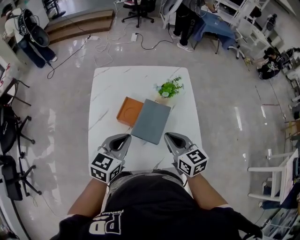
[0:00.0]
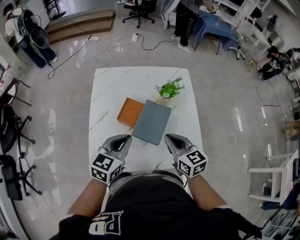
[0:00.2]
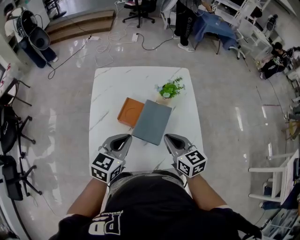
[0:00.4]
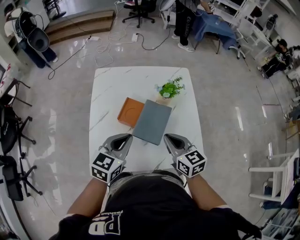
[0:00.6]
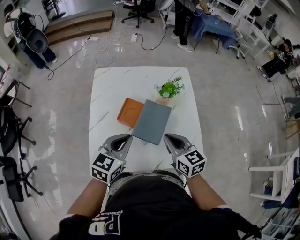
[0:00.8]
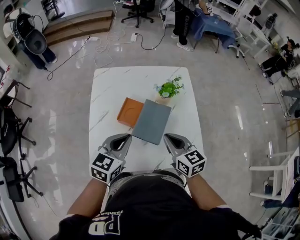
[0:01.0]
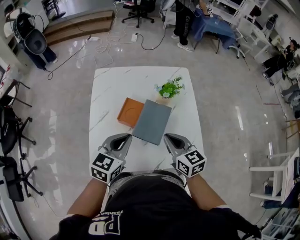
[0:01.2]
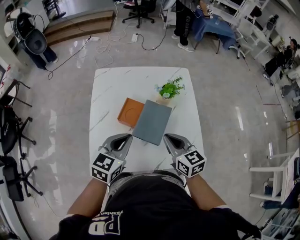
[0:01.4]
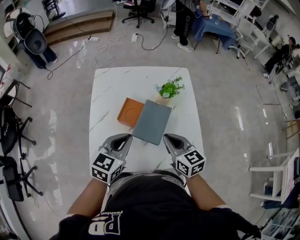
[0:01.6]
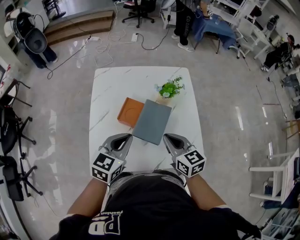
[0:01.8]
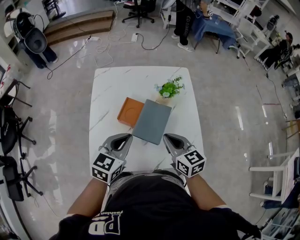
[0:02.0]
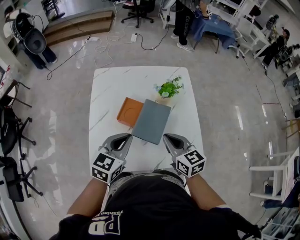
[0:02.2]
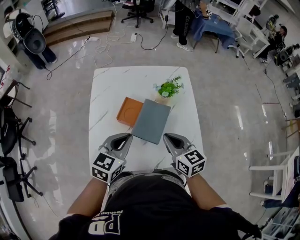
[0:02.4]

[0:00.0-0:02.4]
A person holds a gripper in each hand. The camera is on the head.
0:00.0 to 0:01.2: The two grippers keep their place.
0:01.2 to 0:02.4: Both grippers stay put.

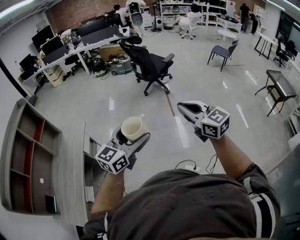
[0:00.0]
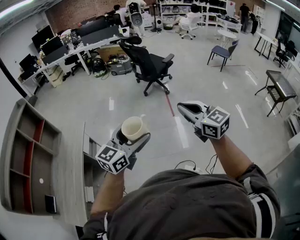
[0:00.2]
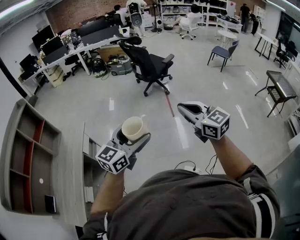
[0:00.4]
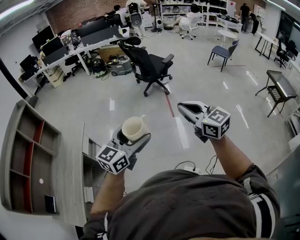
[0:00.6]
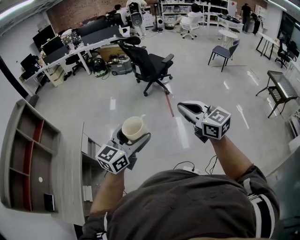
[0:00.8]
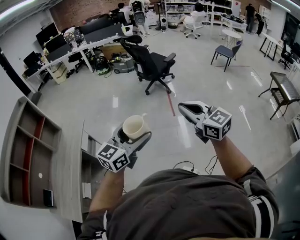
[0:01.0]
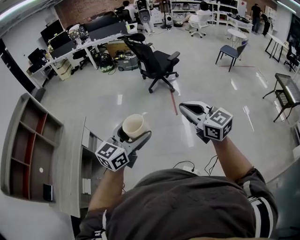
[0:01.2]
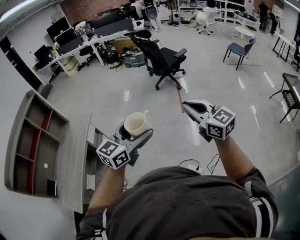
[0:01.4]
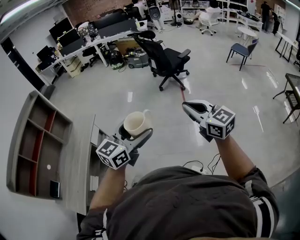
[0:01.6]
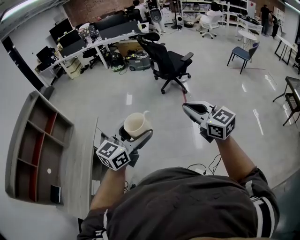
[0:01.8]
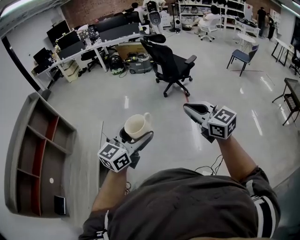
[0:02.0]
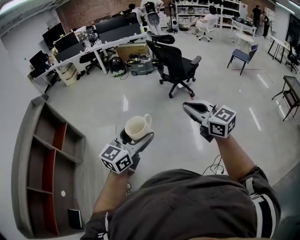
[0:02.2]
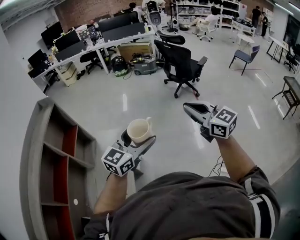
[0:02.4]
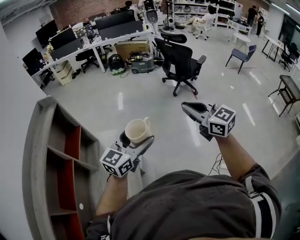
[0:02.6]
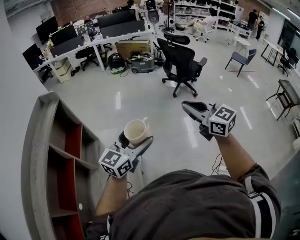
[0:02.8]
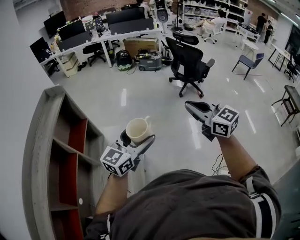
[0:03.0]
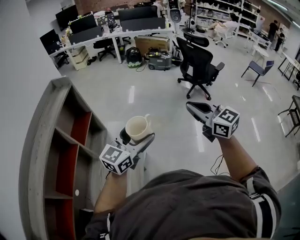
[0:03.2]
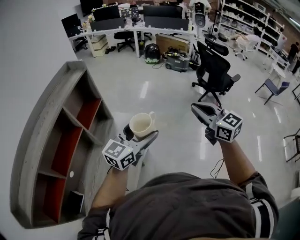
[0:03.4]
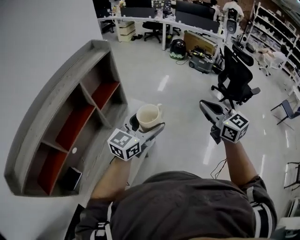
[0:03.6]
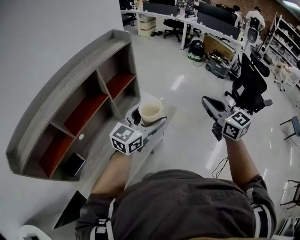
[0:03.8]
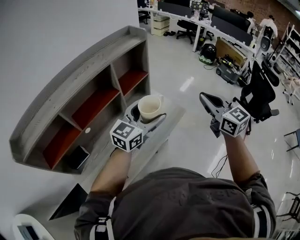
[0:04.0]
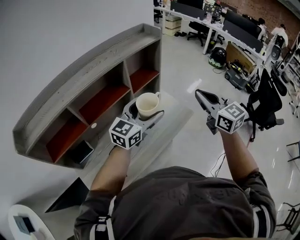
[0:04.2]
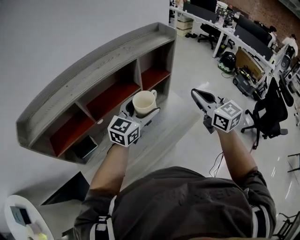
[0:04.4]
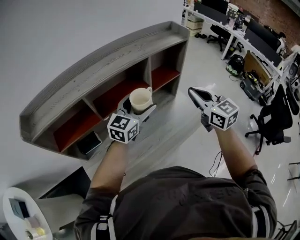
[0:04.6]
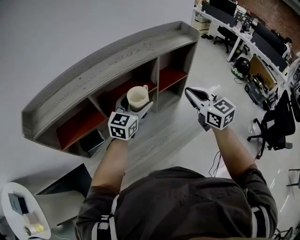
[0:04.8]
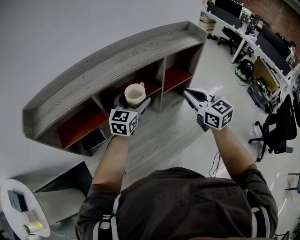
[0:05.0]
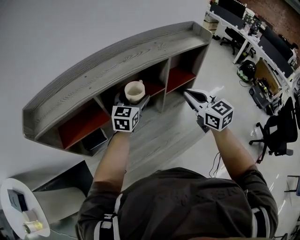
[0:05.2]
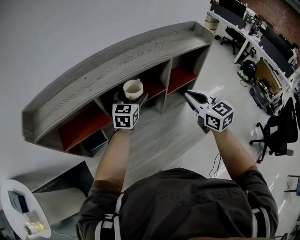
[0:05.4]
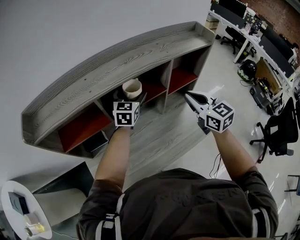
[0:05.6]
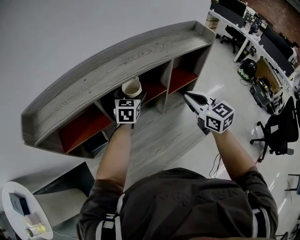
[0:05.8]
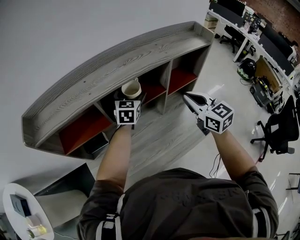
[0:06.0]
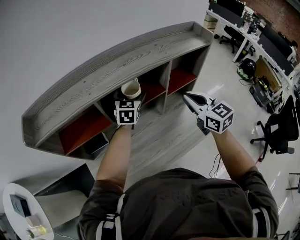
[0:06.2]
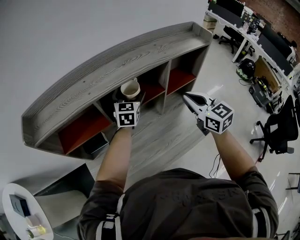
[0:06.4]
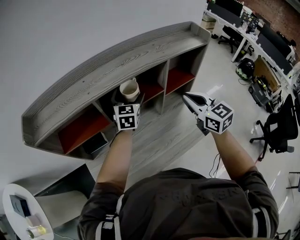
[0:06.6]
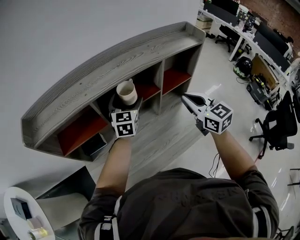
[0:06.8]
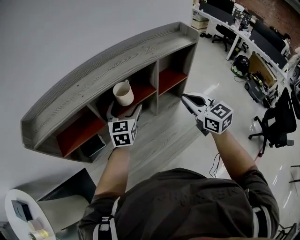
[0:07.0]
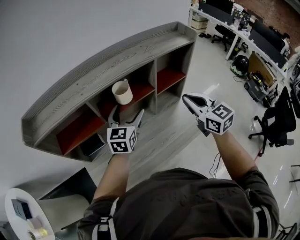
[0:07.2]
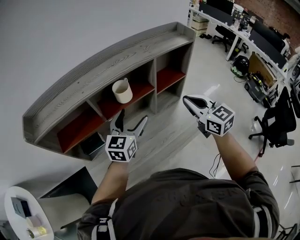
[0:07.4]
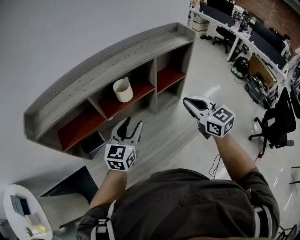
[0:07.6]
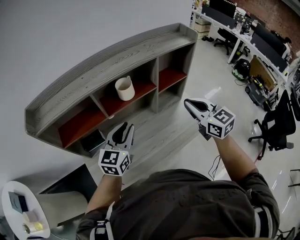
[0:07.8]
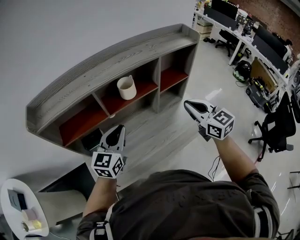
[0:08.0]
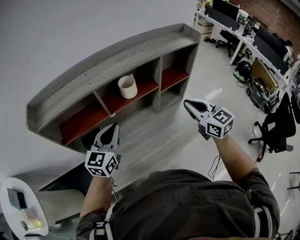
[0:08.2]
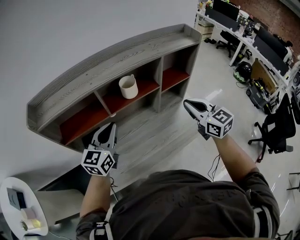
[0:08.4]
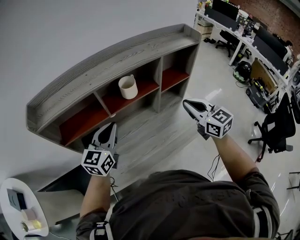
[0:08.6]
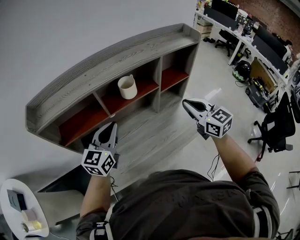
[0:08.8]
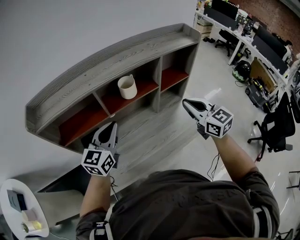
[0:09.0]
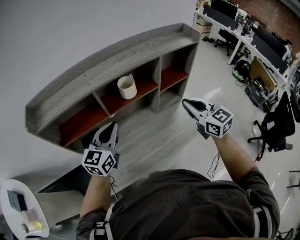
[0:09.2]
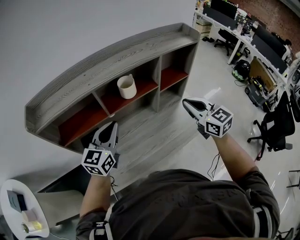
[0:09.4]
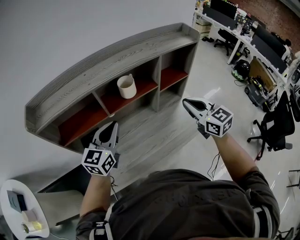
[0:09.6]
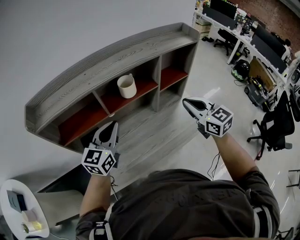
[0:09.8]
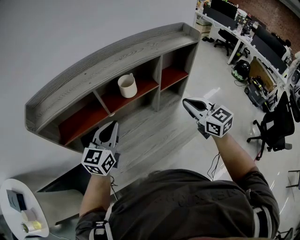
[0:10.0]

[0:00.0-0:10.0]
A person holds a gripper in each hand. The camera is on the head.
0:00.0 to 0:01.4: Both grippers travel together to the right, about 5 cm.
0:01.4 to 0:02.8: The two grippers travel together, to the left, about 60 cm.
0:02.8 to 0:04.2: The left gripper changes place by roughly 20 cm, and turns by approximately 50 degrees; the right gripper ends up roughly 25 cm from where it was, and swivels approximately 40 degrees.
0:04.2 to 0:05.8: The left gripper shifts by roughly 30 cm, and turns by approximately 50 degrees; the right gripper shifts by about 25 cm.
0:05.8 to 0:07.2: The right gripper travels backward by about 5 cm. The left gripper goes some 15 cm backward.
0:07.2 to 0:08.6: The left gripper is displaced to the left and backward by about 15 cm, and closes up.
0:08.6 to 0:10.0: Neither gripper changes place.

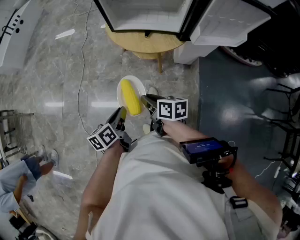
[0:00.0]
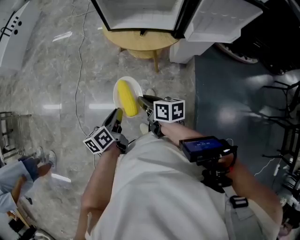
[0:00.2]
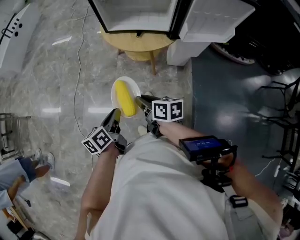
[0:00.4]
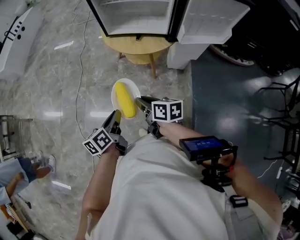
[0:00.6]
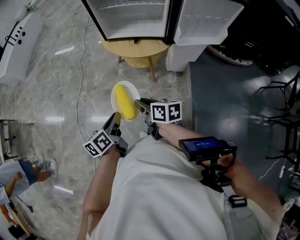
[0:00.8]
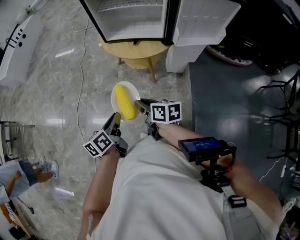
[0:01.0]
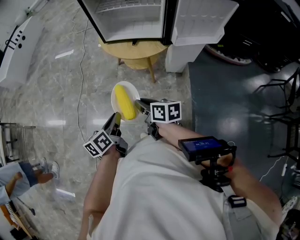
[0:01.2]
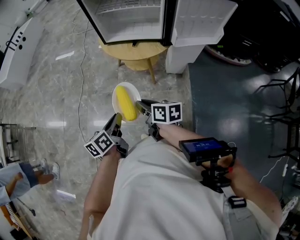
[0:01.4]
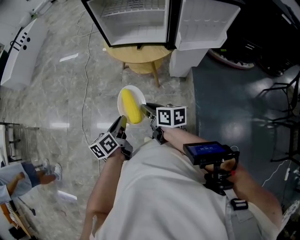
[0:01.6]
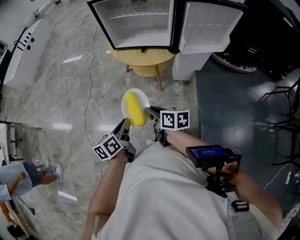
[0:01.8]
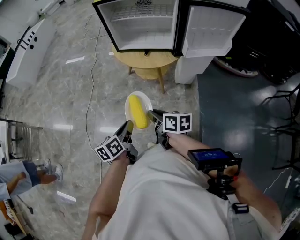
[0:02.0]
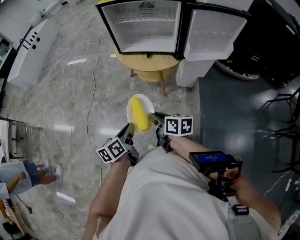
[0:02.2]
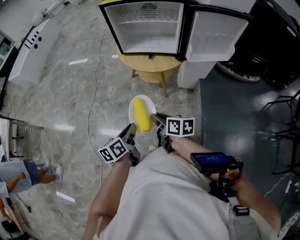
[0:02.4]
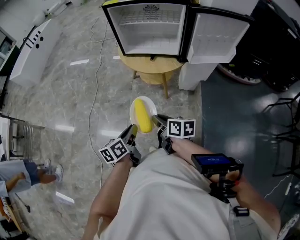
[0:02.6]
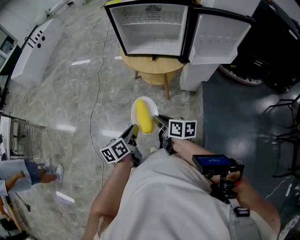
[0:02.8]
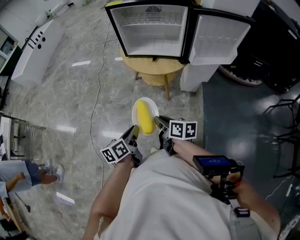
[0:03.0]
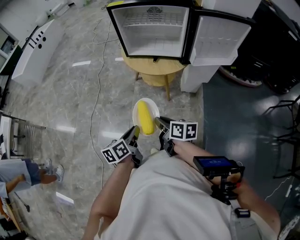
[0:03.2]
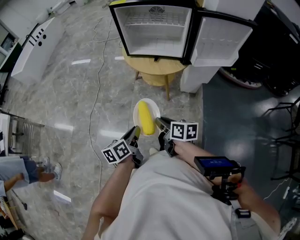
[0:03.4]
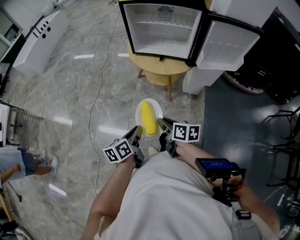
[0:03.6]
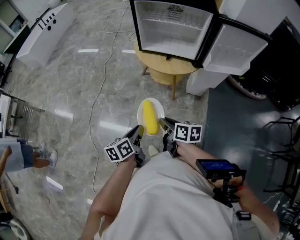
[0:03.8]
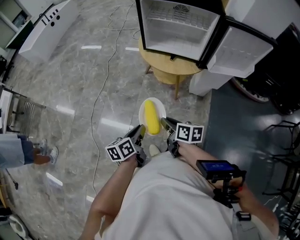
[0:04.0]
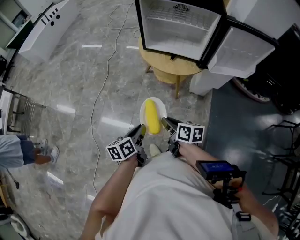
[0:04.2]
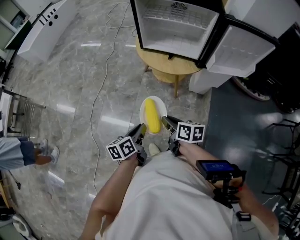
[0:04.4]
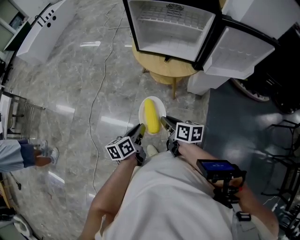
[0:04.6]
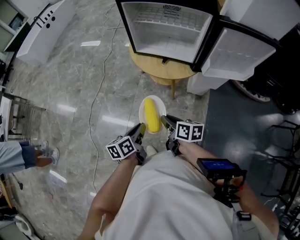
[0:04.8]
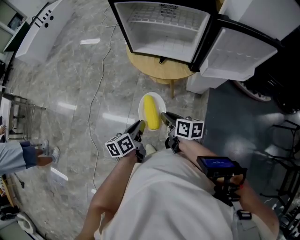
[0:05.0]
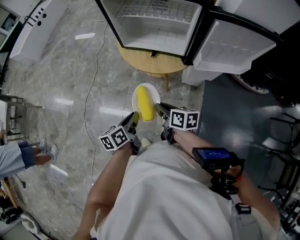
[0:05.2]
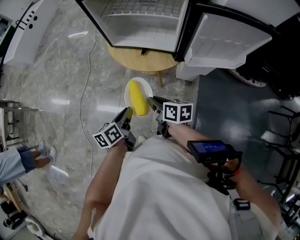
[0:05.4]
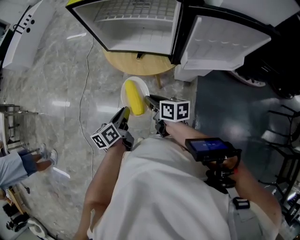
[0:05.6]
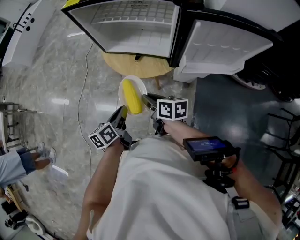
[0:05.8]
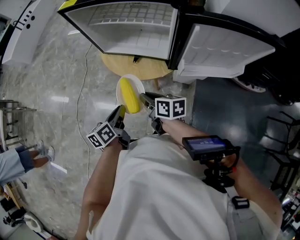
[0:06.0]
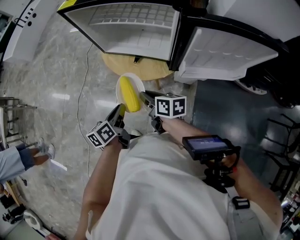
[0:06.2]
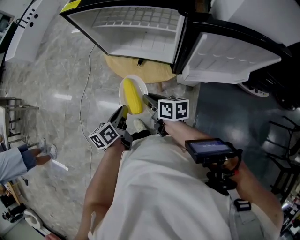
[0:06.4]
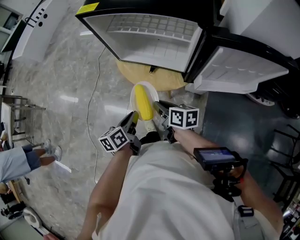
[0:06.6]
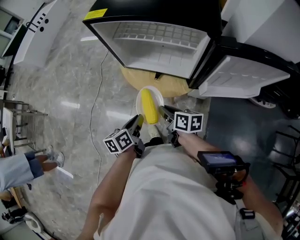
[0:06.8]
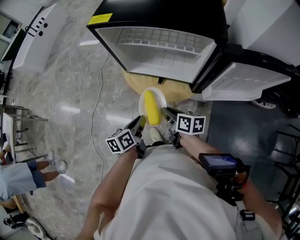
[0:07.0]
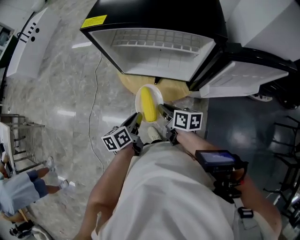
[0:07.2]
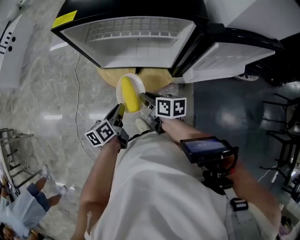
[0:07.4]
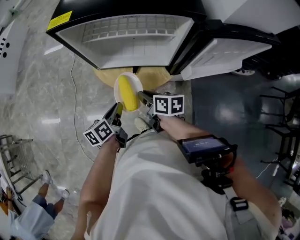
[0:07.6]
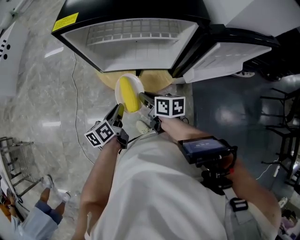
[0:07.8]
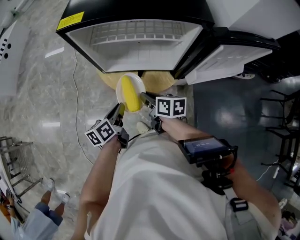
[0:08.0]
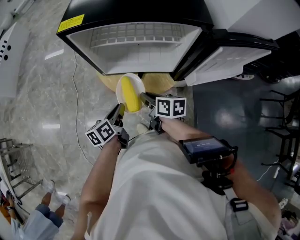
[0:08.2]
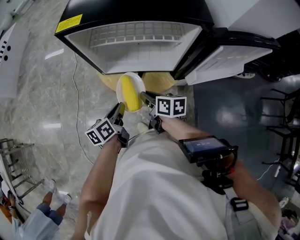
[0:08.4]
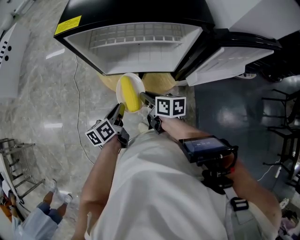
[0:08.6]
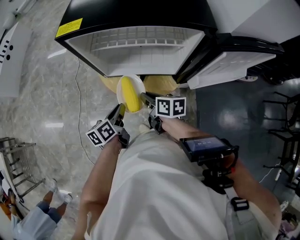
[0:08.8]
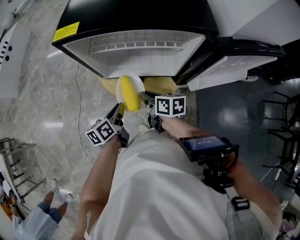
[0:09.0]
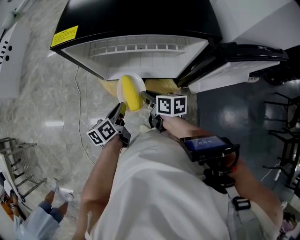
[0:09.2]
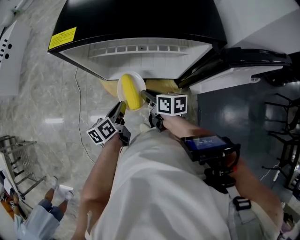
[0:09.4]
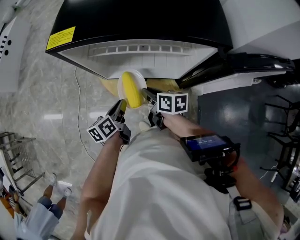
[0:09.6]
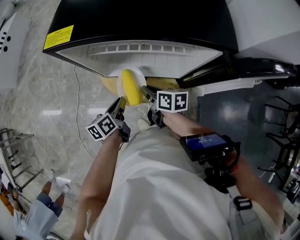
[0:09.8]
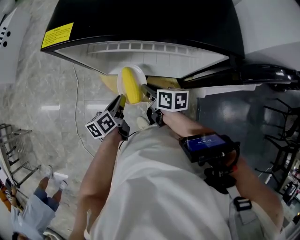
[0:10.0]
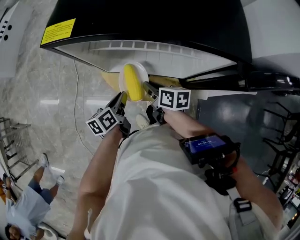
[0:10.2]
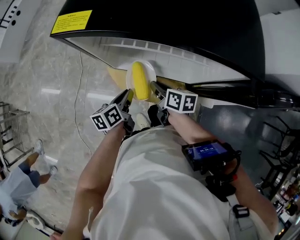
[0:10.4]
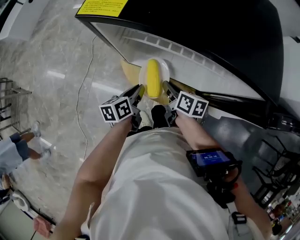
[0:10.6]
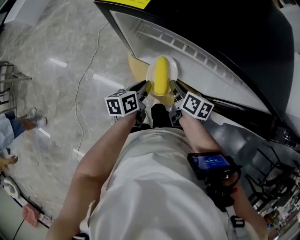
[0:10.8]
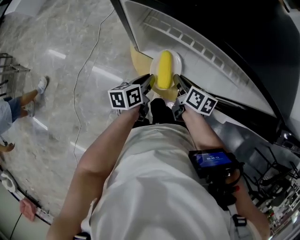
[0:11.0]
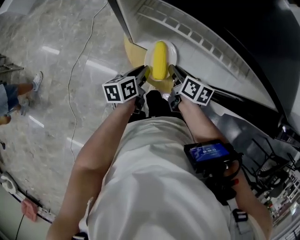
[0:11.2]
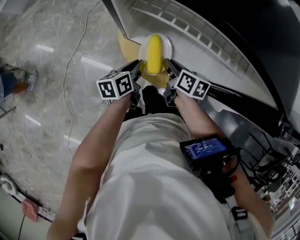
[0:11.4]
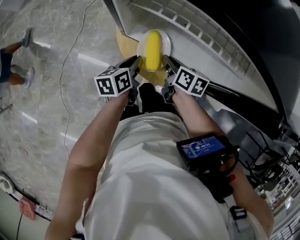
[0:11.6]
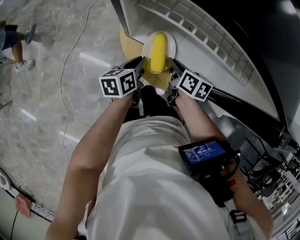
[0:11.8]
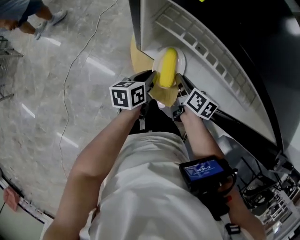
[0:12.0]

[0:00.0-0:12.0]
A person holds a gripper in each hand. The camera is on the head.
0:00.0 to 0:01.6: The two grippers go approximately 10 cm backward.
0:01.6 to 0:03.0: The two grippers keep their place.
0:03.0 to 0:04.4: The grippers stay close to where they were, moving slightly.
0:04.4 to 0:06.0: Both grippers travel together forward and to the right, some 25 cm.
0:06.0 to 0:07.6: The two grippers go approximately 10 cm forward.
0:07.6 to 0:09.0: The two grippers go approximately 5 cm forward.
0:09.0 to 0:10.4: The right gripper travels forward and downward by roughly 10 cm. Meanwhile the left gripper moves forward, roughly 5 cm.
0:10.4 to 0:12.0: The right gripper changes place by some 5 cm.
